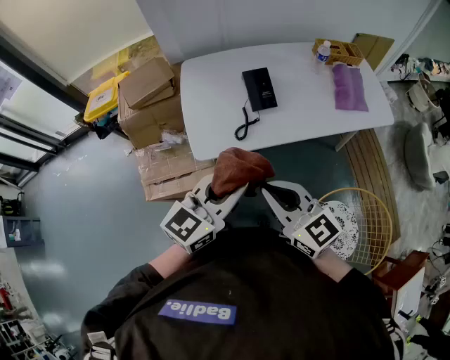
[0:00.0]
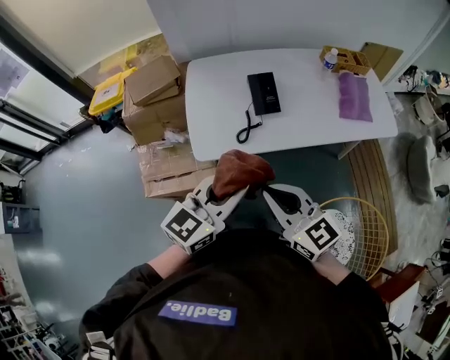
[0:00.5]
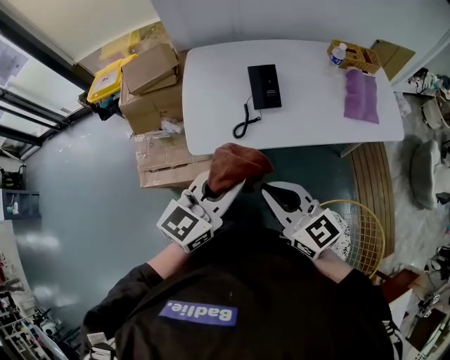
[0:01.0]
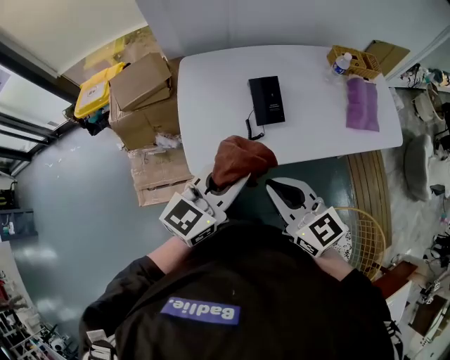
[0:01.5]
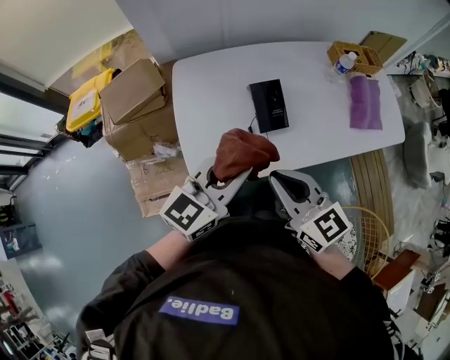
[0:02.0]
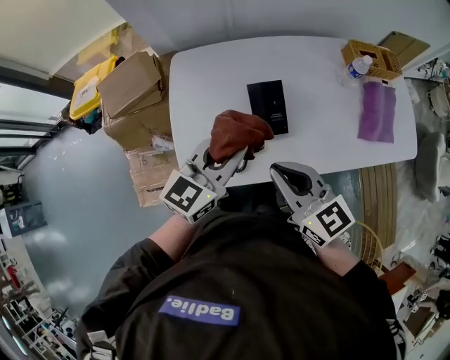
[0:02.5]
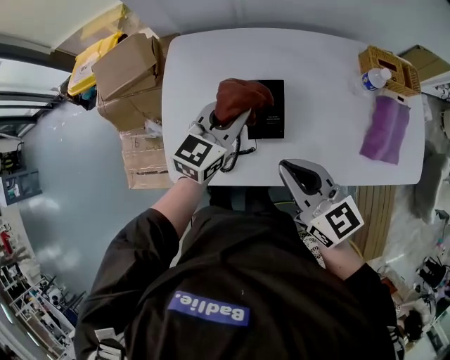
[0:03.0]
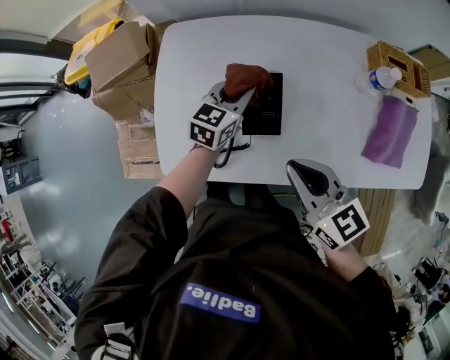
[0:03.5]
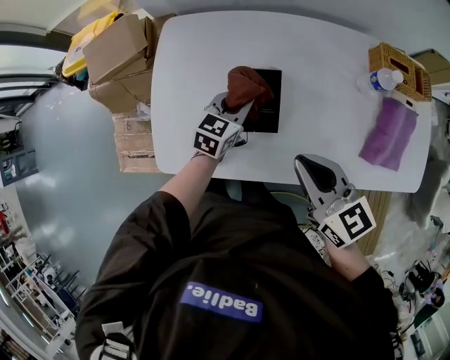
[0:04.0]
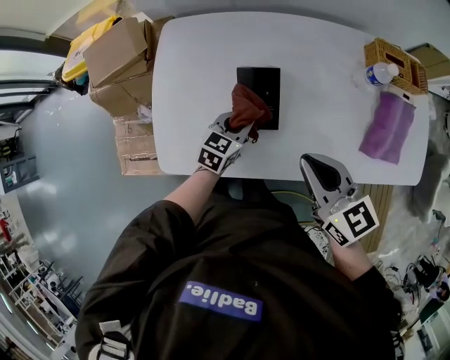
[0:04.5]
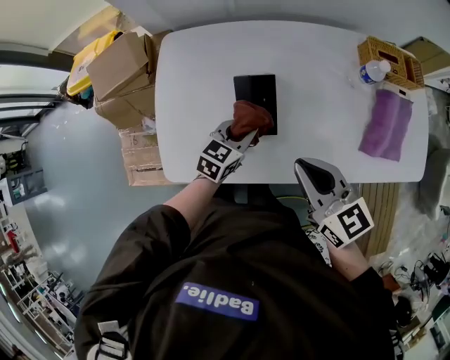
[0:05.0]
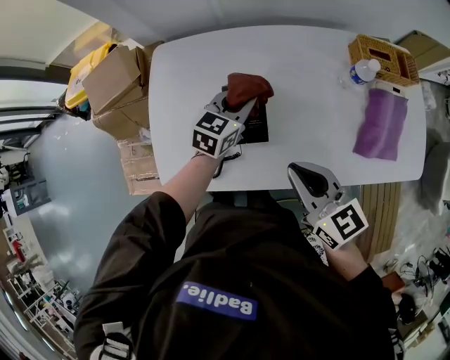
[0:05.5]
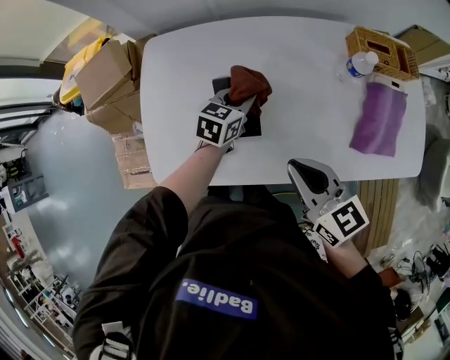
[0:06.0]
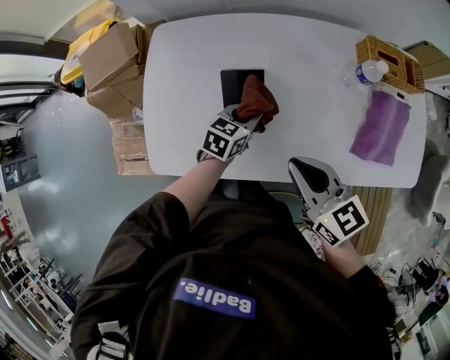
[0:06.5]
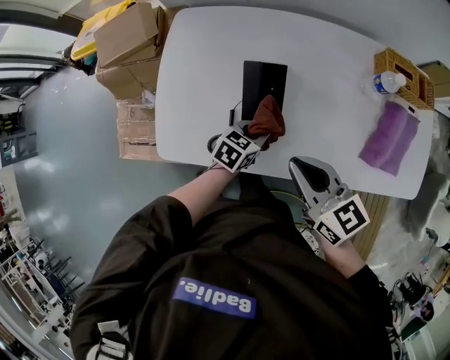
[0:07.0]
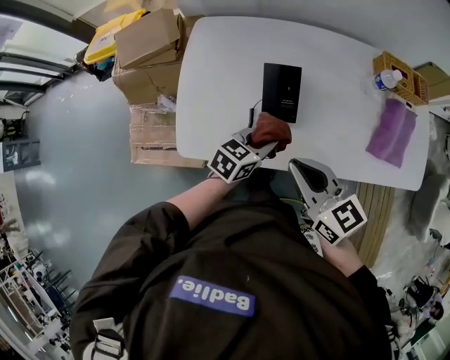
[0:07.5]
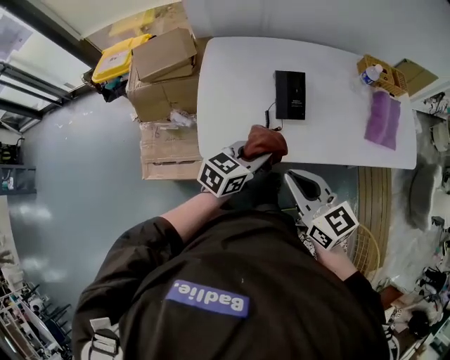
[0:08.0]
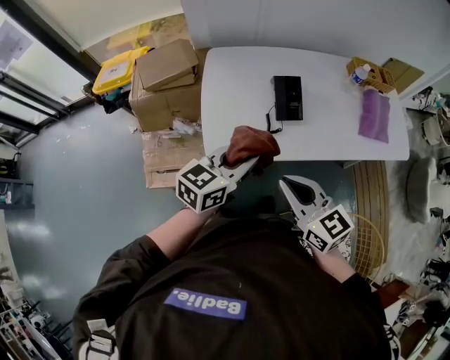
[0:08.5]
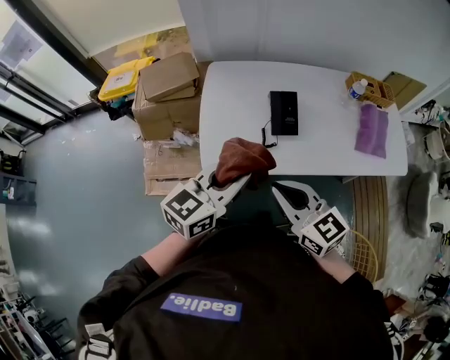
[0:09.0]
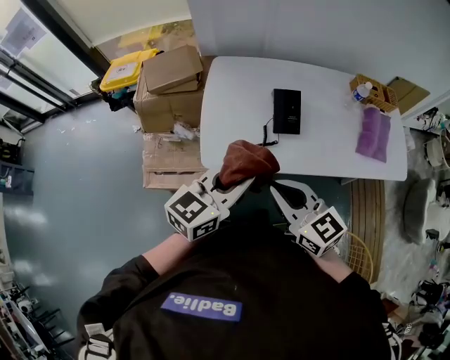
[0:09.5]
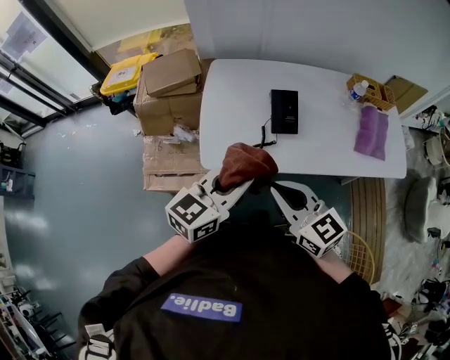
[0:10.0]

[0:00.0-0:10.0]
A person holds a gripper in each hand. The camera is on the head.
0:00.0 to 0:02.0: The two grippers go approximately 20 cm forward.
0:02.0 to 0:04.0: The left gripper shifts some 35 cm downward, forward and to the right, and changes its angle by some 30 degrees. Meanwhile the right gripper travels to the right, forward and downward by approximately 20 cm.
0:04.0 to 0:06.0: The left gripper is displaced to the right by roughly 5 cm, and moves approximately 5 cm backward and comes back.
0:06.0 to 0:08.0: The left gripper shifts approximately 35 cm backward, to the left and upward, while the right gripper travels to the left and backward by about 25 cm.
0:08.0 to 0:10.0: The right gripper ends up roughly 5 cm from where it was. Meanwhile the left gripper heads upward and backward, covering about 15 cm.

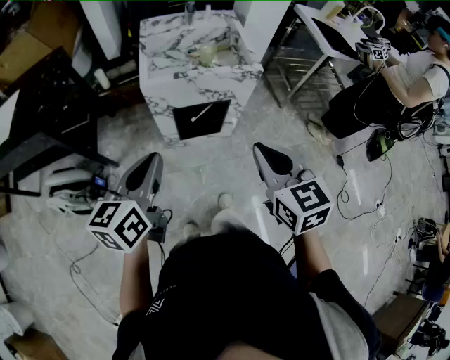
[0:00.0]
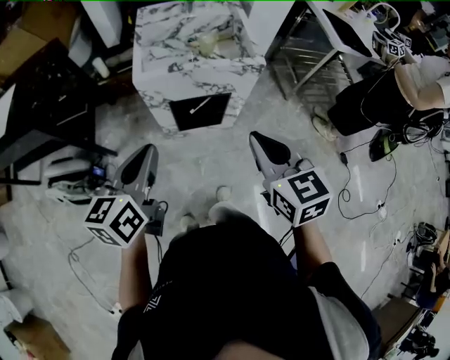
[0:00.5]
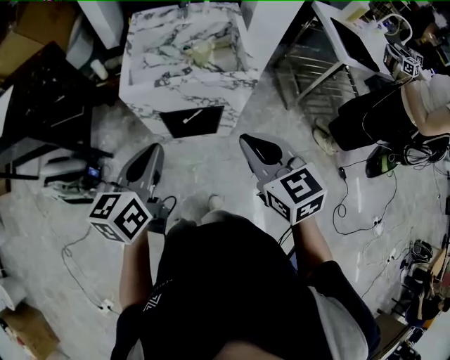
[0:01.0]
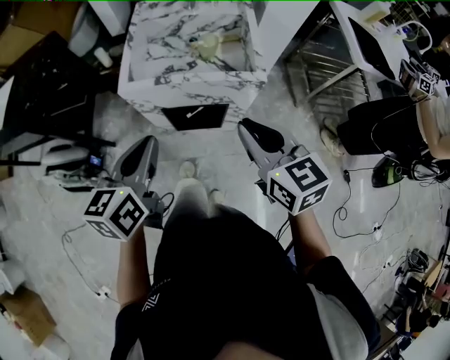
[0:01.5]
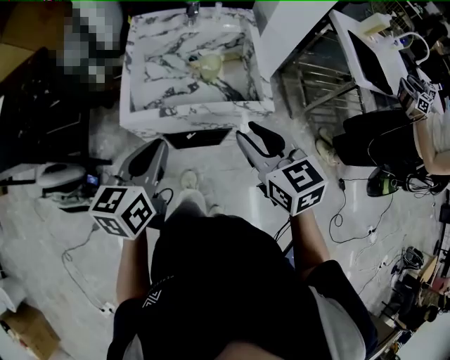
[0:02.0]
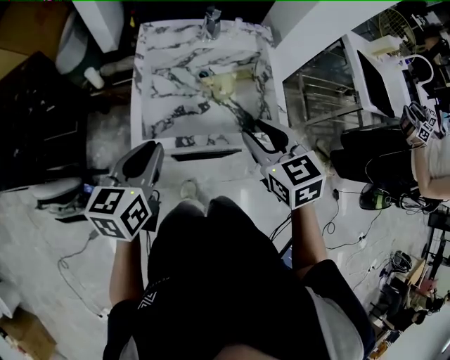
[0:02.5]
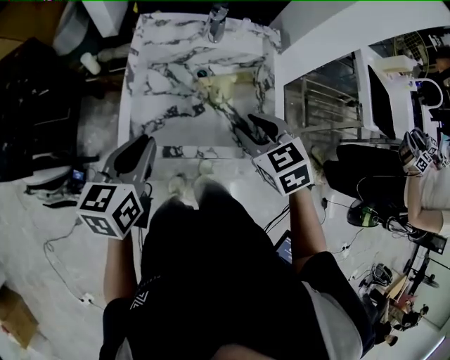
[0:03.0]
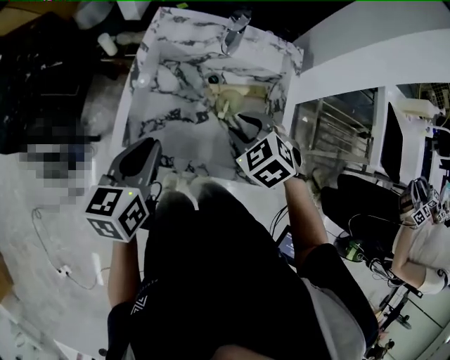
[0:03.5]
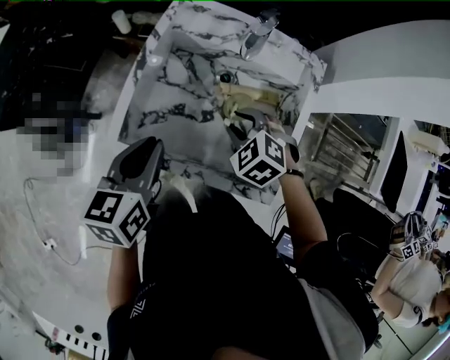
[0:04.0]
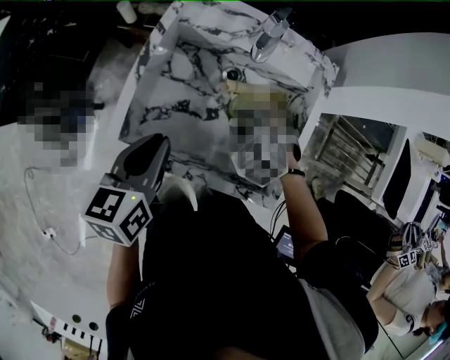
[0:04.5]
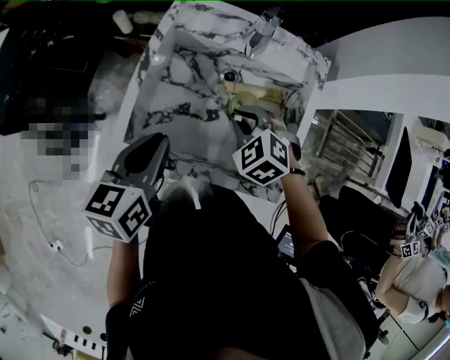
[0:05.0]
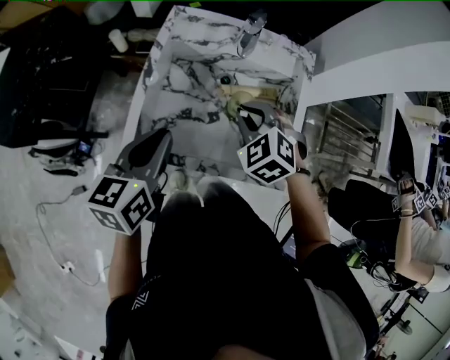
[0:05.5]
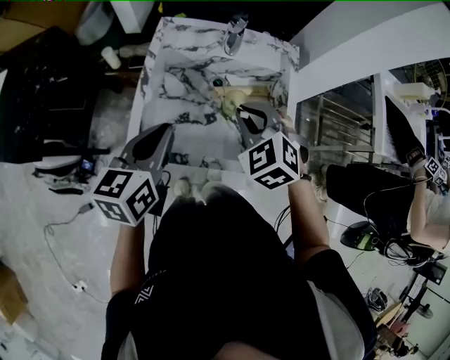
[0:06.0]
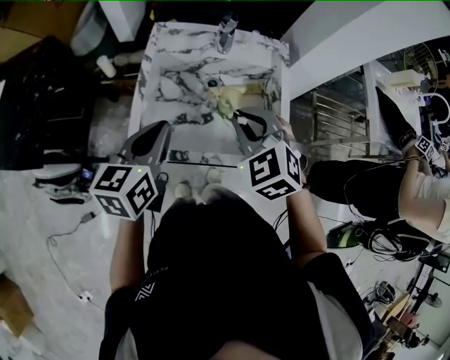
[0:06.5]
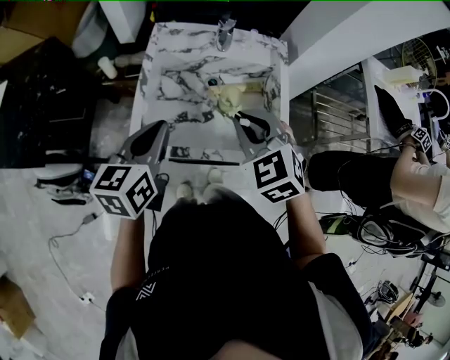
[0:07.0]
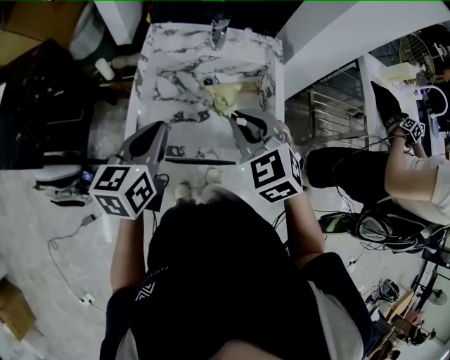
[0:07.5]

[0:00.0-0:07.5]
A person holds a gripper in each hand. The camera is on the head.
0:00.0 to 0:02.0: The grippers both shift forward by about 25 cm. The right gripper opens its fingers.
0:02.0 to 0:04.0: The left gripper moves forward, approximately 15 cm, and turns by some 20 degrees; the right gripper heads forward and downward, covering roughly 30 cm, and tilts its fingers roughly 40 degrees downward.
0:04.0 to 0:05.5: The right gripper heads upward, covering approximately 5 cm, and closes up.
0:05.5 to 0:07.5: The right gripper moves upward and backward, roughly 10 cm, and turns by roughly 20 degrees.

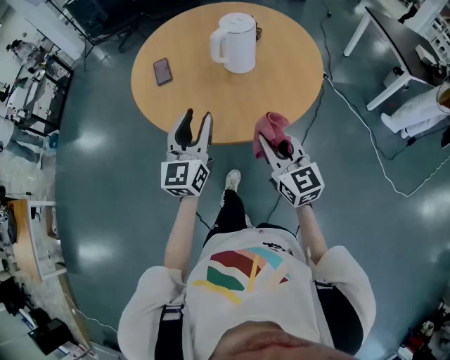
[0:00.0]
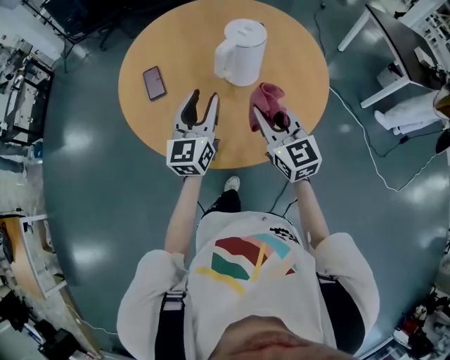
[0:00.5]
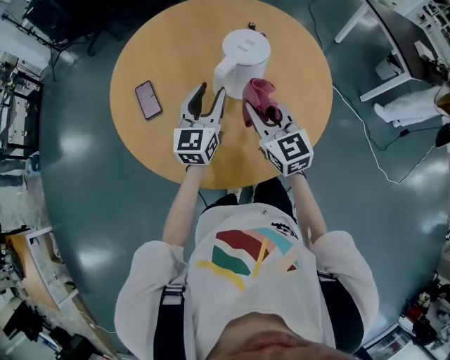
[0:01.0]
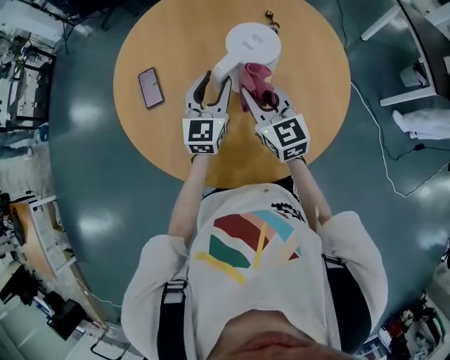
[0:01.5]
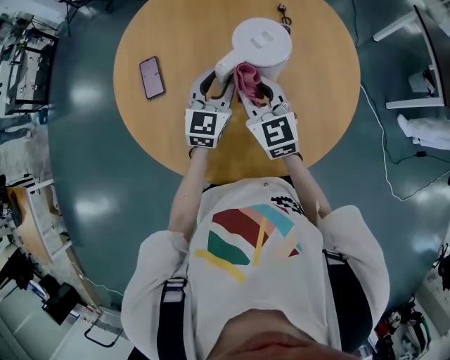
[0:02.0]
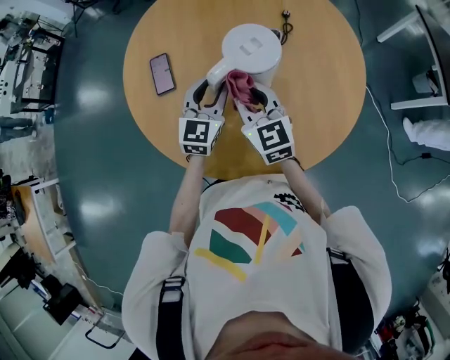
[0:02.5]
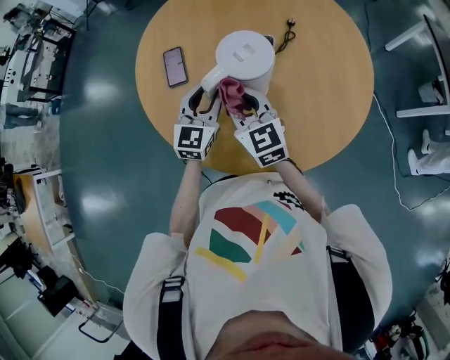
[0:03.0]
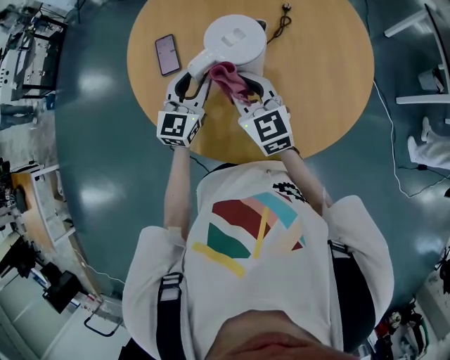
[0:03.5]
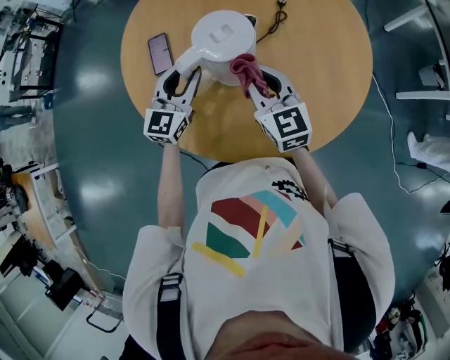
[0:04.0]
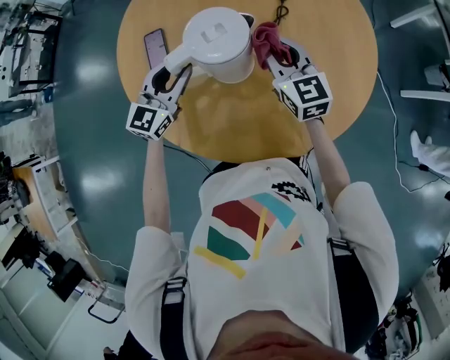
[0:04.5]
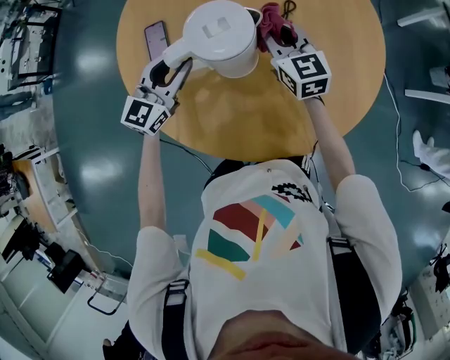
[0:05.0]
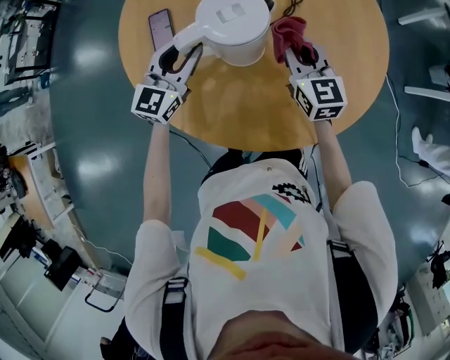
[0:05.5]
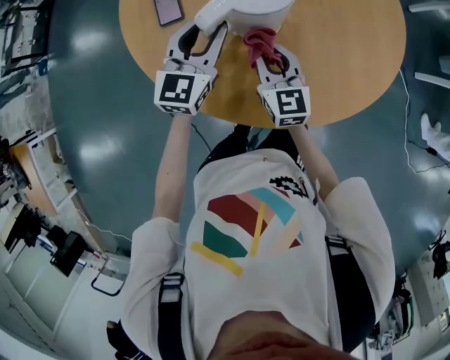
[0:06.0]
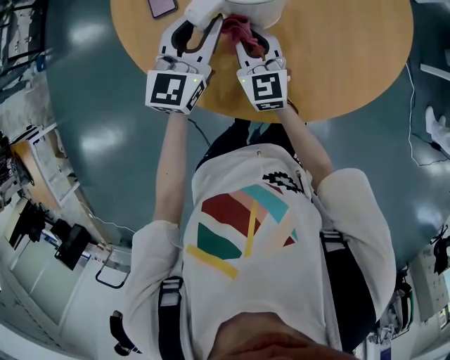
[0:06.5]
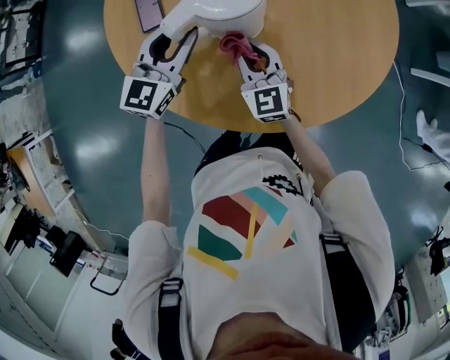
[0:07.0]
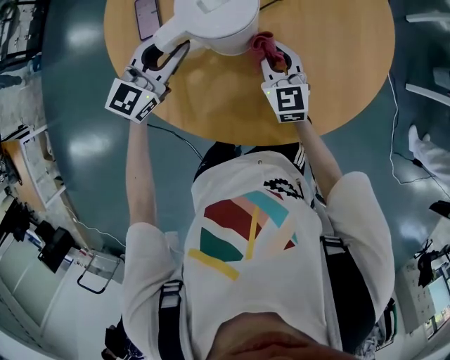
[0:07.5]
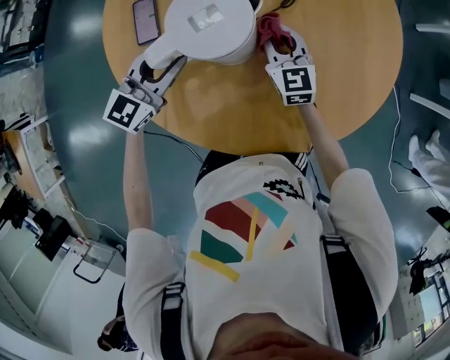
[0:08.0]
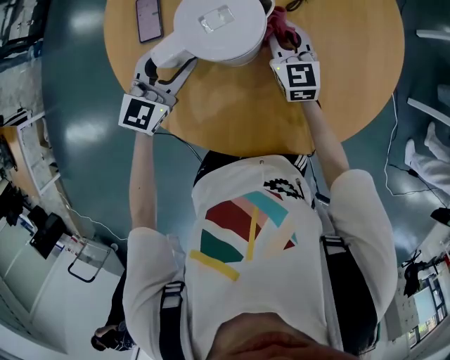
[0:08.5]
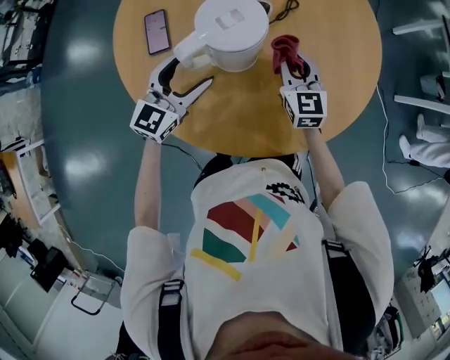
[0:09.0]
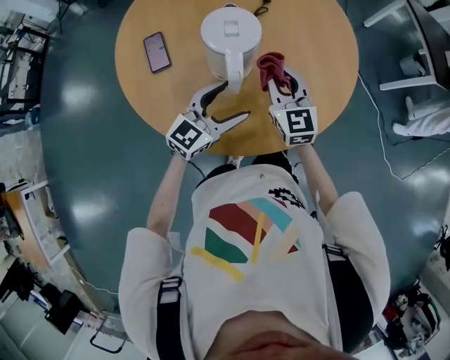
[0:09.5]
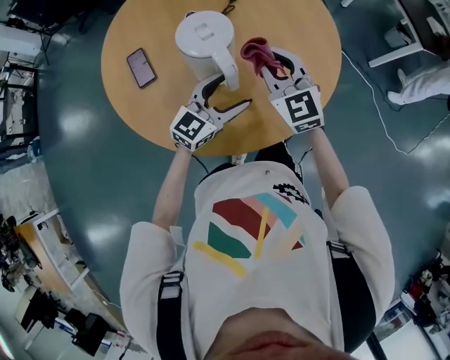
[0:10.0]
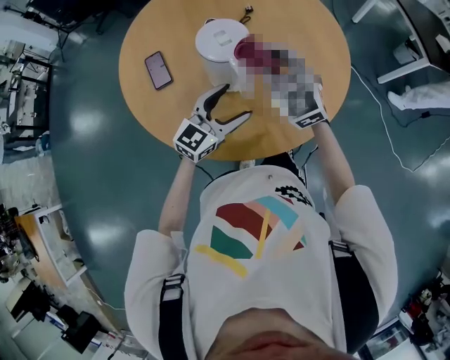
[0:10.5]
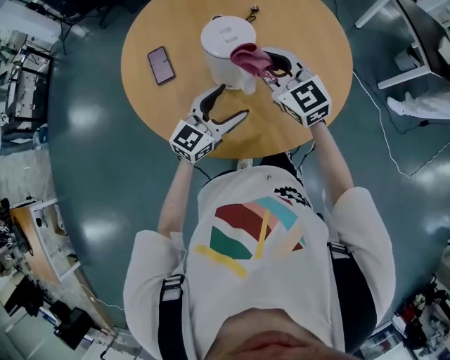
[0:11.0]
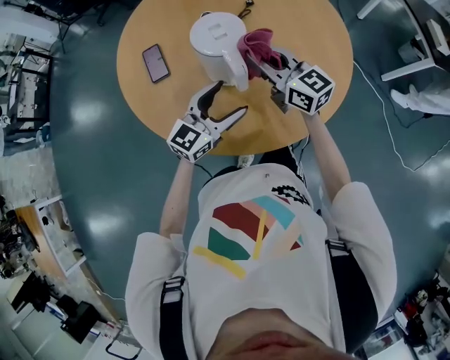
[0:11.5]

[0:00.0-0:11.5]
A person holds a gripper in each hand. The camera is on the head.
0:00.0 to 0:02.0: Both grippers move forward, about 35 cm.
0:02.0 to 0:04.0: The left gripper shifts some 10 cm to the left; the right gripper goes to the left and returns, approximately 10 cm each way.
0:04.0 to 0:06.0: The right gripper goes roughly 10 cm downward, and goes forward and returns, approximately 15 cm each way.
0:06.0 to 0:07.5: The right gripper moves to the right and forward, some 10 cm.
0:07.5 to 0:09.5: The right gripper moves upward, approximately 10 cm, and moves about 10 cm forward and comes back. Meanwhile the left gripper shifts roughly 15 cm to the right and backward, and opens up.
0:09.5 to 0:11.5: The right gripper is displaced upward by approximately 5 cm, and rotates some 30 degrees.
